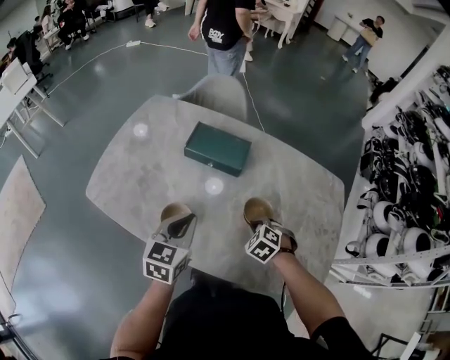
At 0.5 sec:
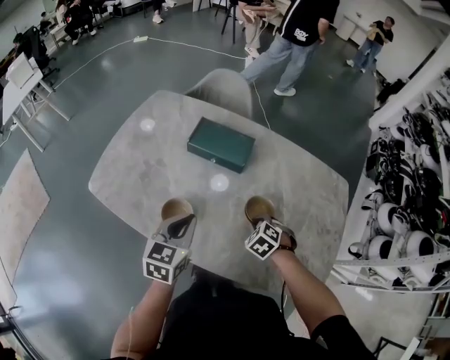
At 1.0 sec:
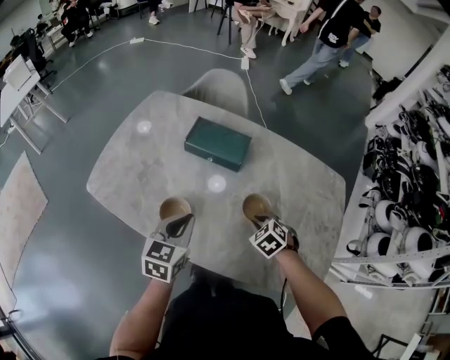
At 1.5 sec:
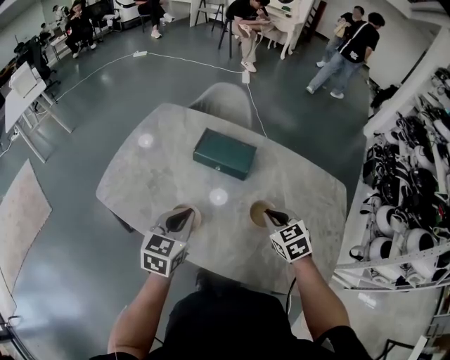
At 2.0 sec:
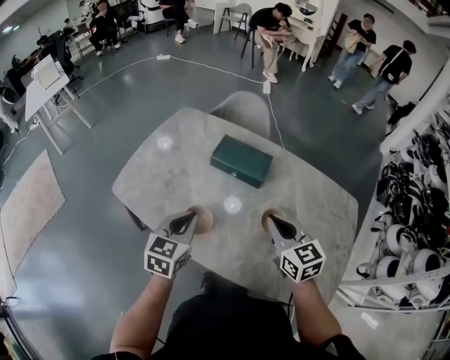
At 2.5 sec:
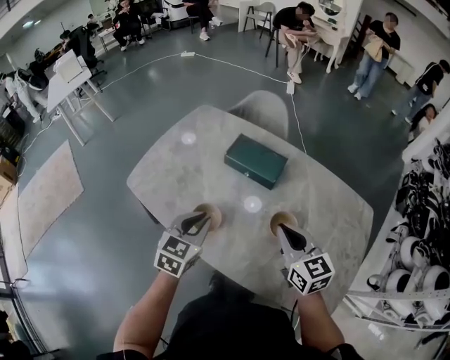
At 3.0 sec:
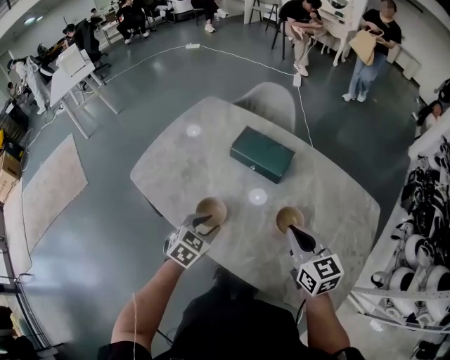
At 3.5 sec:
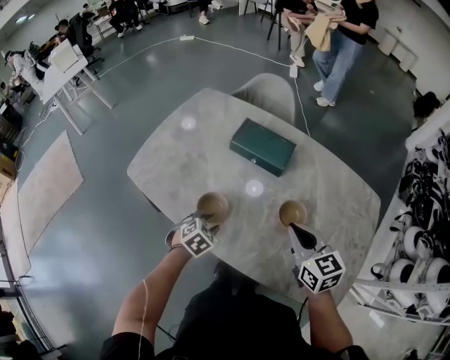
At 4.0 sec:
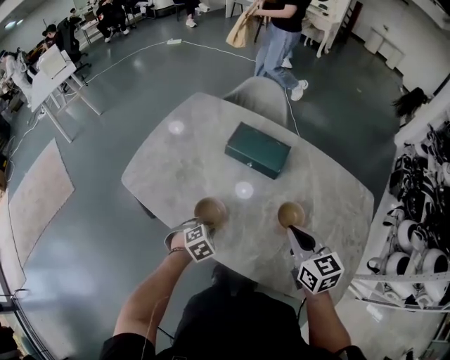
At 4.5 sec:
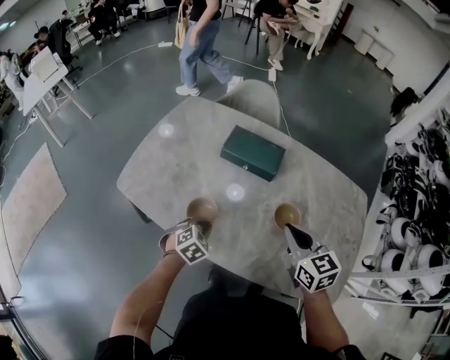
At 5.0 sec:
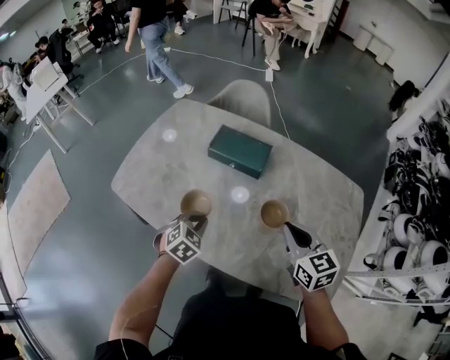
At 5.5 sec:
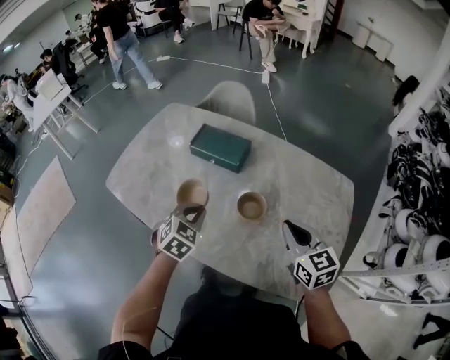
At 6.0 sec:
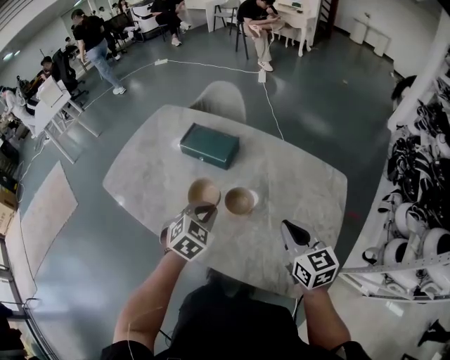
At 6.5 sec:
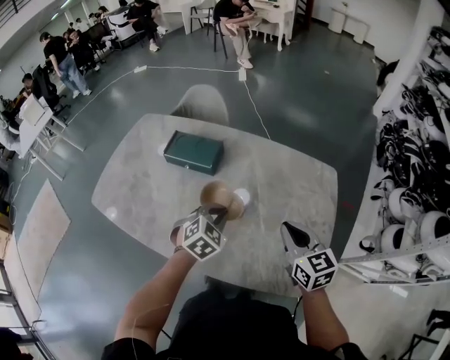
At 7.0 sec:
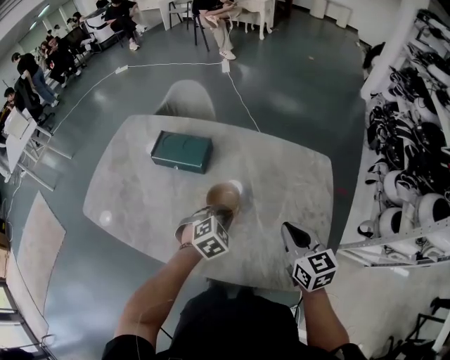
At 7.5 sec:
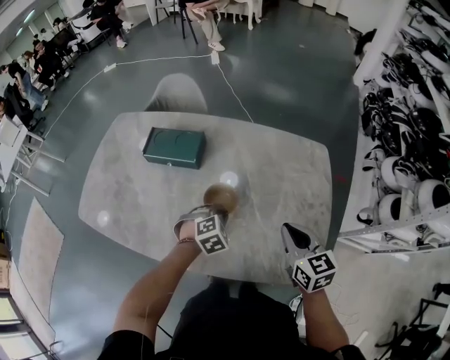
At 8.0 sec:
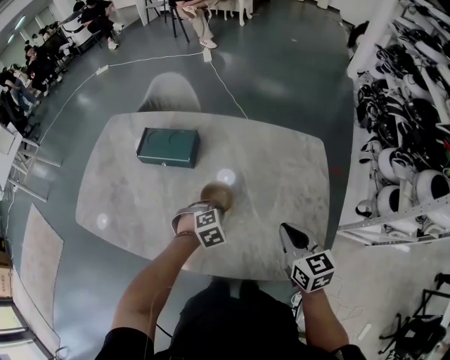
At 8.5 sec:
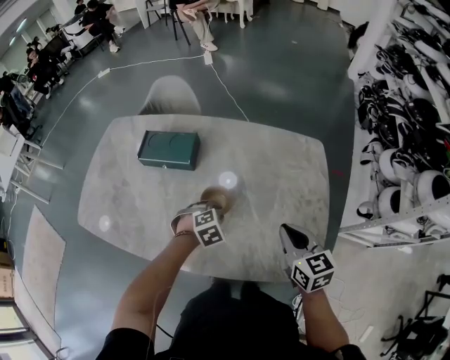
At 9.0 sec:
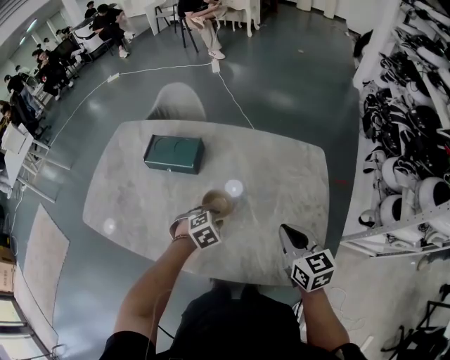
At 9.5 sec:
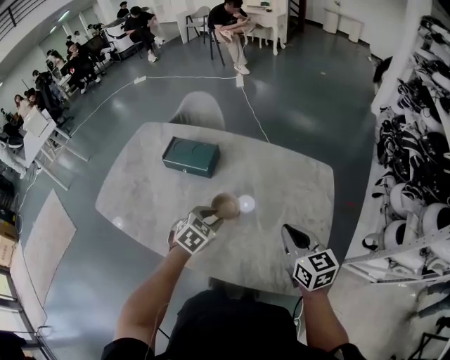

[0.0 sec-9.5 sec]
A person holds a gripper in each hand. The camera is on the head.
0.0 sec to 2.0 sec: The left gripper travels to the left by roughly 5 cm. The right gripper is displaced upward by some 20 cm, and points its fingers approximately 50 degrees further upward.
2.0 sec to 4.0 sec: The left gripper moves downward, some 20 cm, tilts its fingers approximately 40 degrees downward, and opens and closes again.
4.0 sec to 5.5 sec: The right gripper is displaced to the right by approximately 15 cm, while the left gripper is displaced upward and to the right by roughly 20 cm, and turns by approximately 20 degrees.
5.5 sec to 7.5 sec: The right gripper heads to the right, covering some 10 cm; the left gripper is displaced to the right and downward by approximately 20 cm, and rotates about 40 degrees.
7.5 sec to 9.5 sec: The left gripper shifts roughly 10 cm upward, turns by some 30 degrees, and opens.

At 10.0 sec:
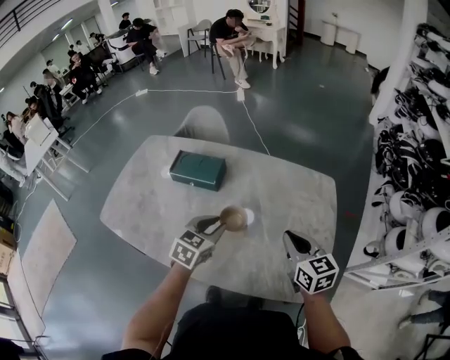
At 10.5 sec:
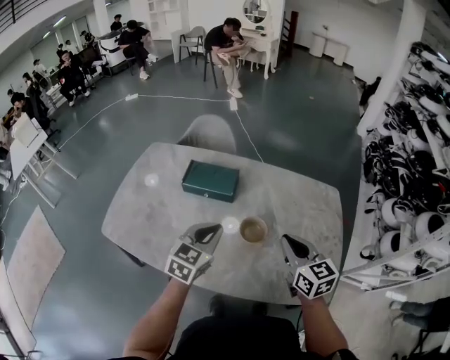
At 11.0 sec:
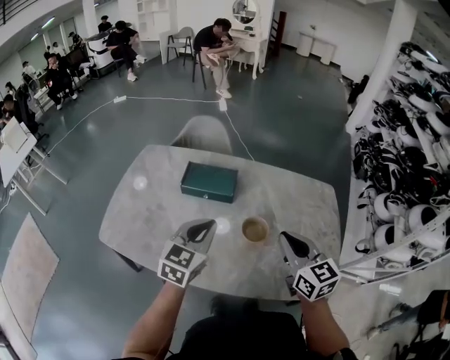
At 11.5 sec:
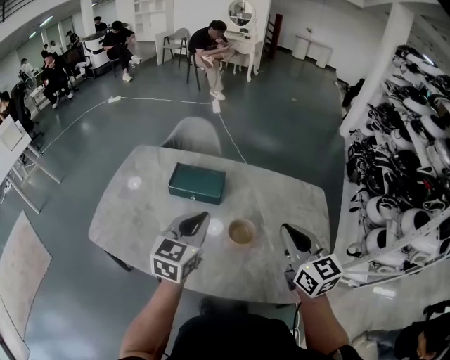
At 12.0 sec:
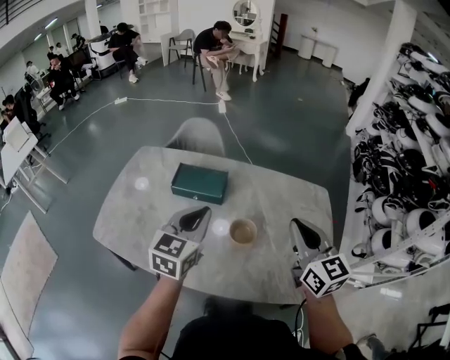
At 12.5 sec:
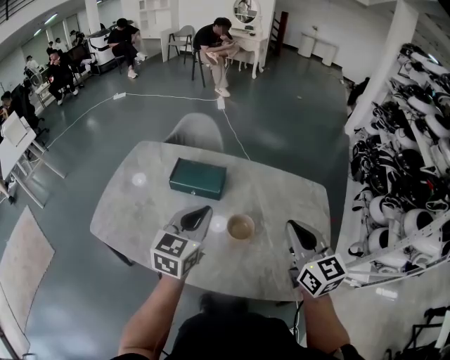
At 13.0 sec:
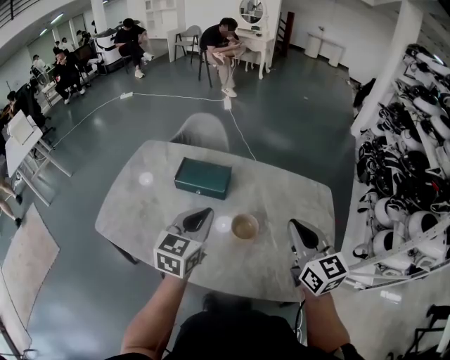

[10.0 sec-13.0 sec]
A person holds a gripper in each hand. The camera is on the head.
10.0 sec to 11.5 sec: The grippers both shift to the left and upward by roughly 20 cm. The left gripper rotates some 20 degrees, and closes up.
11.5 sec to 13.0 sec: The grippers make only small movements.

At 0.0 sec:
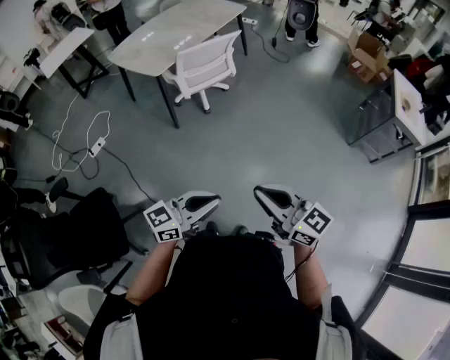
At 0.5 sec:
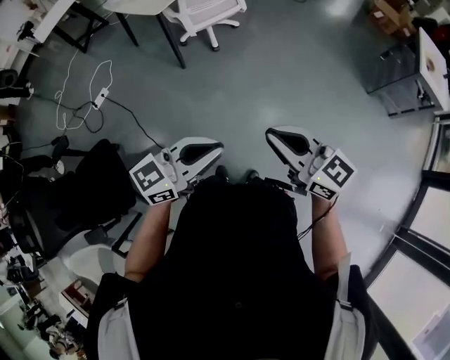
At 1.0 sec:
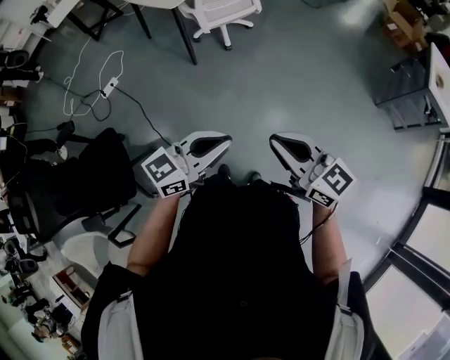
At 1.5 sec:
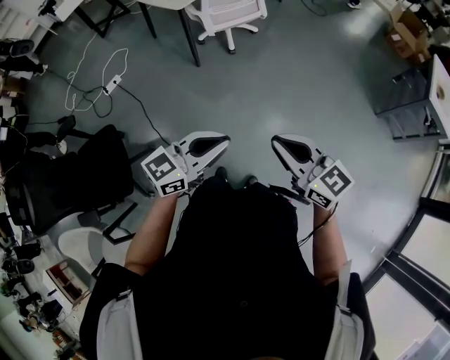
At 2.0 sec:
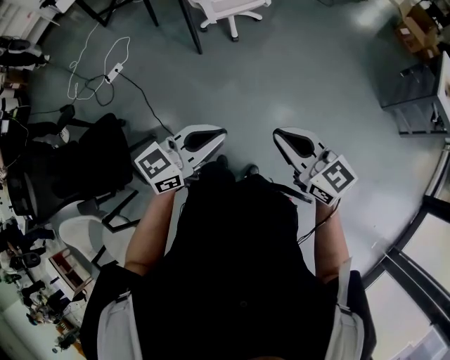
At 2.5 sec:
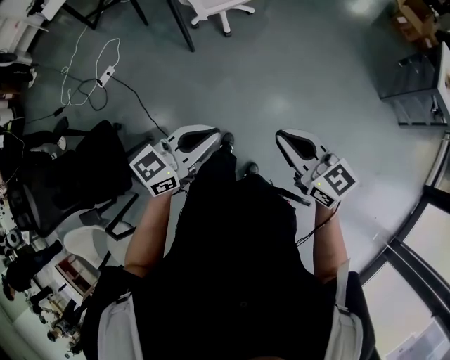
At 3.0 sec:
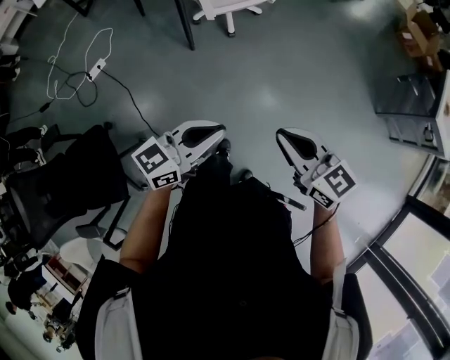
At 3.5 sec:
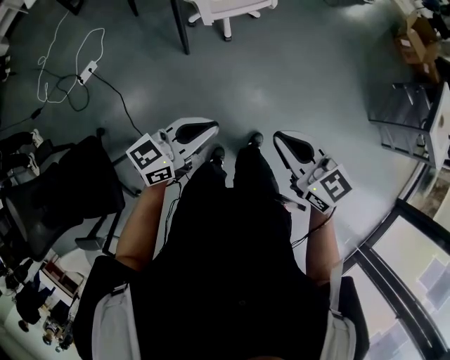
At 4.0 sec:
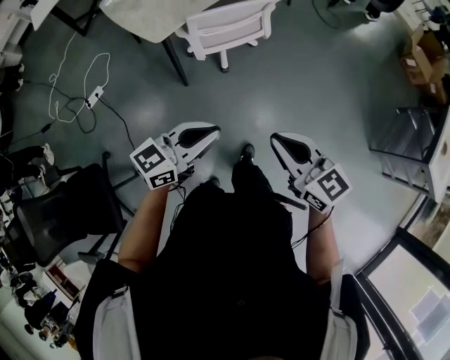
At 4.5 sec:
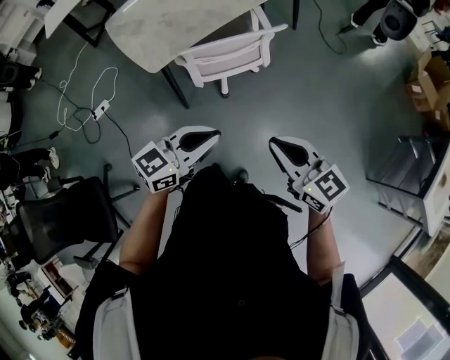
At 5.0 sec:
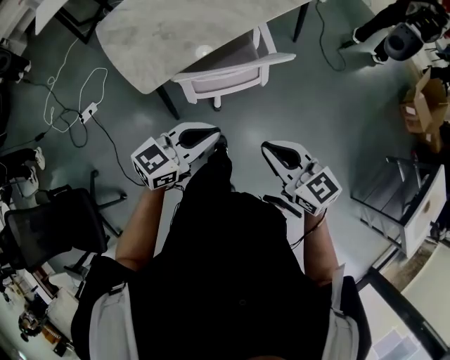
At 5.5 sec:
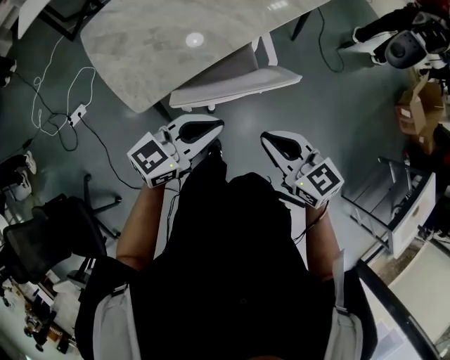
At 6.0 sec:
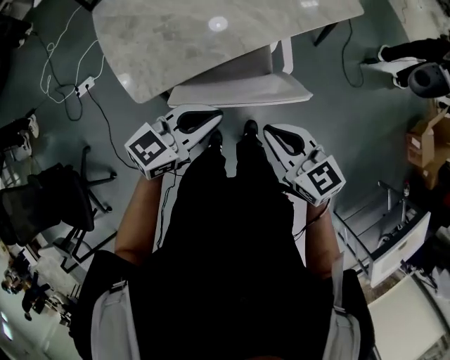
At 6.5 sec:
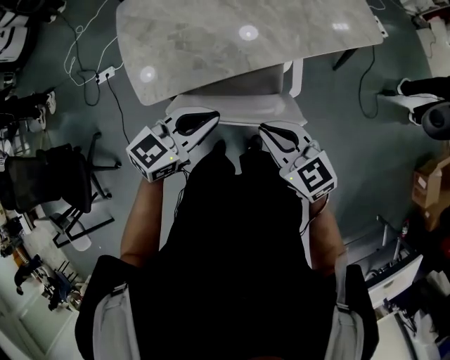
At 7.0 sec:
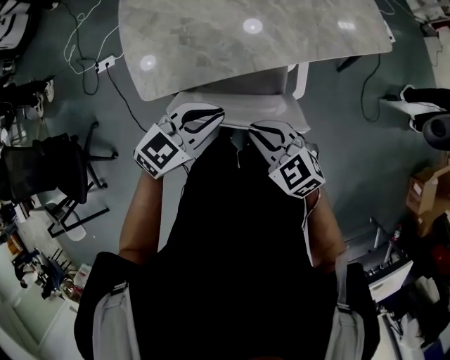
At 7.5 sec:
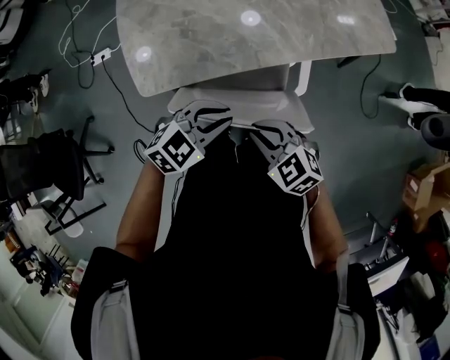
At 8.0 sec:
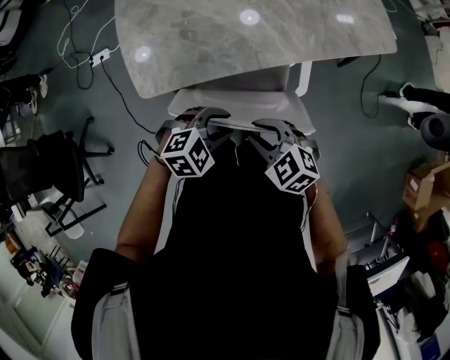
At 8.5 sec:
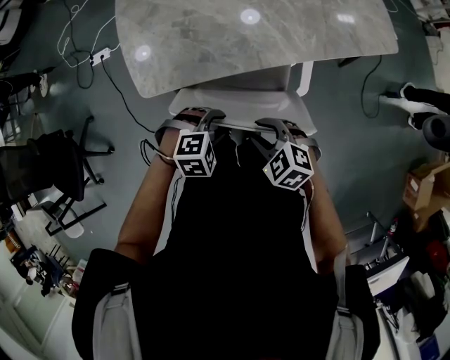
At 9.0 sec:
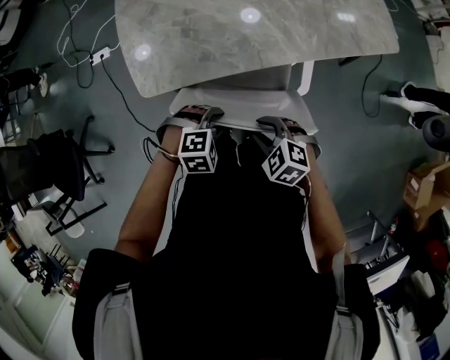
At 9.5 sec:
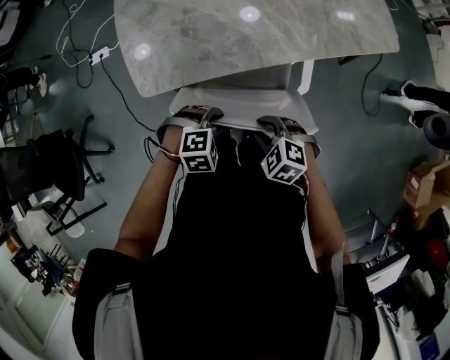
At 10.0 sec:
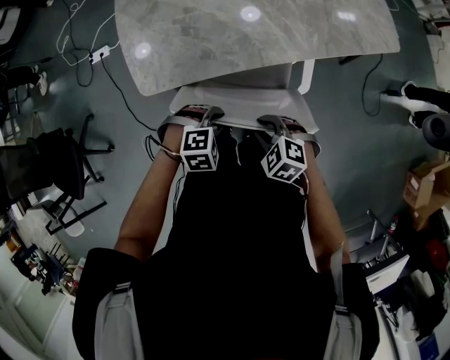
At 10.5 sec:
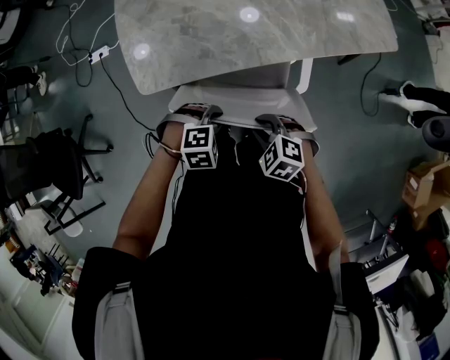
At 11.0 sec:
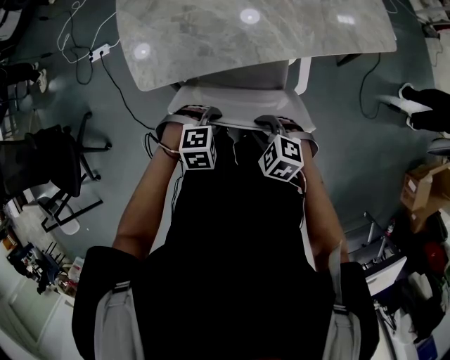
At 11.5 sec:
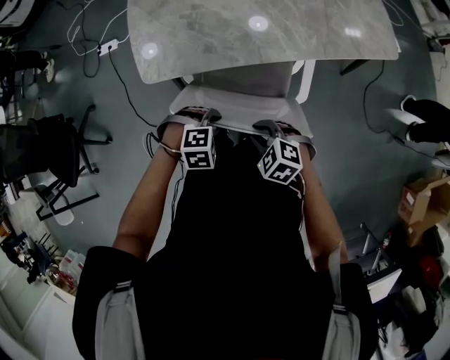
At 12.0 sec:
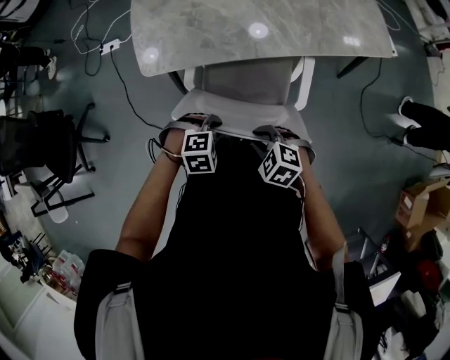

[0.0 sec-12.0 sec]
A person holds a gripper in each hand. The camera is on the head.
0.0 sec to 2.0 sec: The right gripper is displaced downward by roughly 5 cm; the left gripper heads forward, covering some 5 cm.
2.0 sec to 4.0 sec: The pair of grippers is taken forward, roughly 40 cm.
4.0 sec to 6.0 sec: The pair of grippers is taken forward, some 50 cm. The right gripper rotates some 20 degrees.
6.0 sec to 8.0 sec: The two grippers go about 10 cm downward. The left gripper tilts its fingers some 40 degrees downward, and opens, while the right gripper turns by some 40 degrees.
8.0 sec to 10.0 sec: The grippers both shift downward by roughly 5 cm. The left gripper changes its angle by some 20 degrees.
10.0 sec to 12.0 sec: The right gripper changes place by about 10 cm. Meanwhile the left gripper moves about 10 cm.

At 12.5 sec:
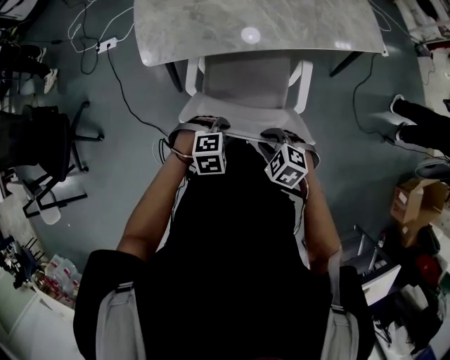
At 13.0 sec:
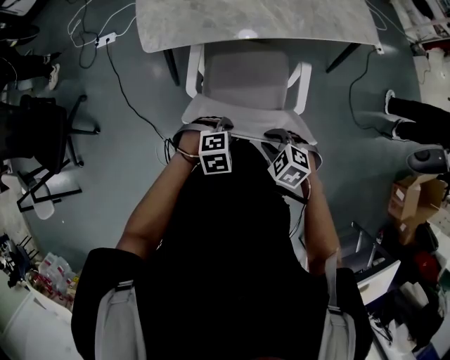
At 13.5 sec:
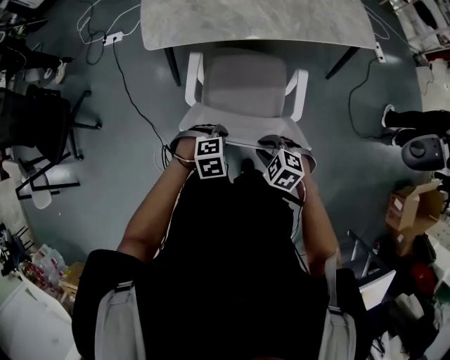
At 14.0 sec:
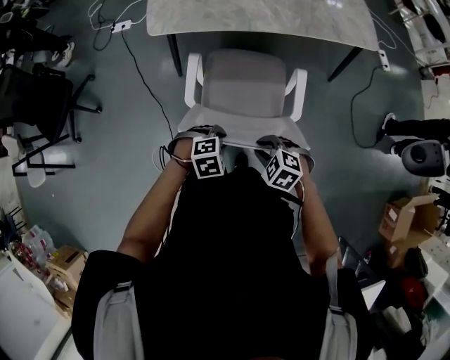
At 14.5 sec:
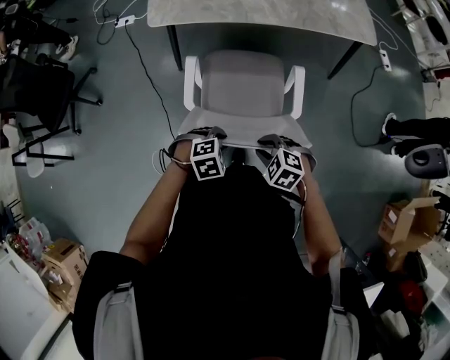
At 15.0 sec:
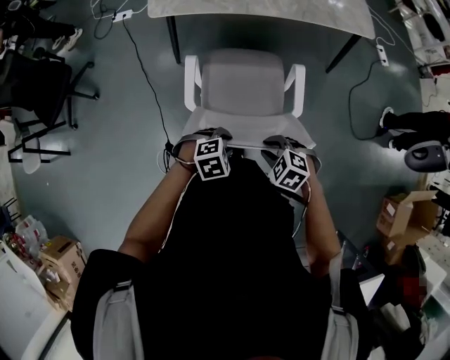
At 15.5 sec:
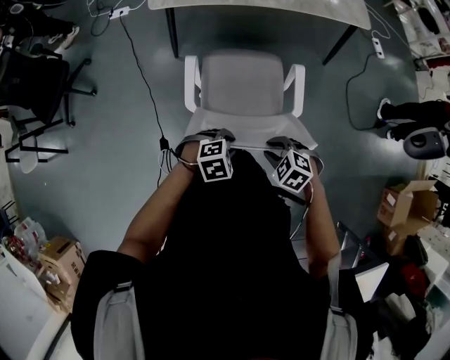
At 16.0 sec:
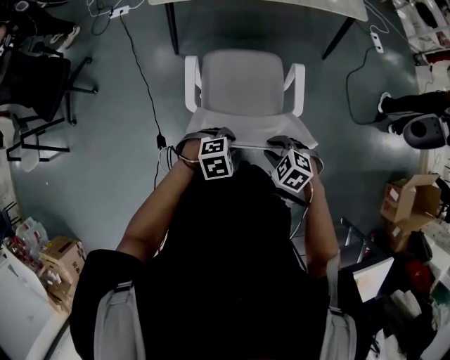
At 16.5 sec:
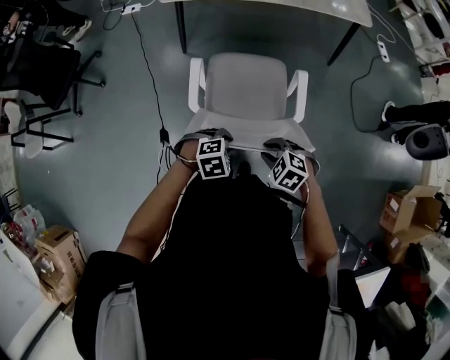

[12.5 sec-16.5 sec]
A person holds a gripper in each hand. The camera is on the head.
12.5 sec to 14.5 sec: The right gripper ends up approximately 25 cm from where it was. The left gripper ends up about 25 cm from where it was.
14.5 sec to 16.5 sec: The left gripper shifts by some 15 cm. Meanwhile the right gripper moves some 15 cm.
